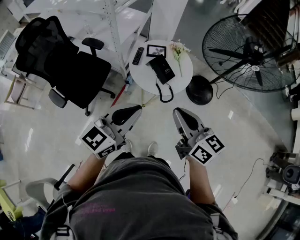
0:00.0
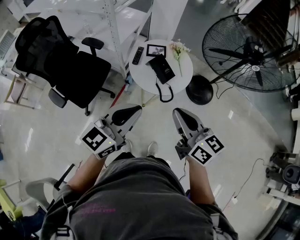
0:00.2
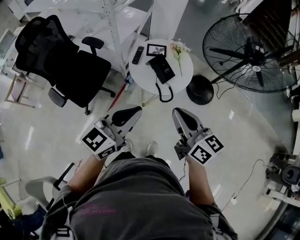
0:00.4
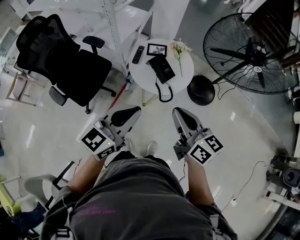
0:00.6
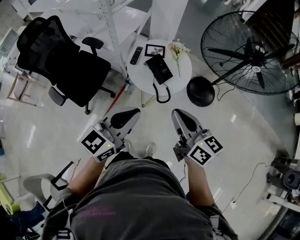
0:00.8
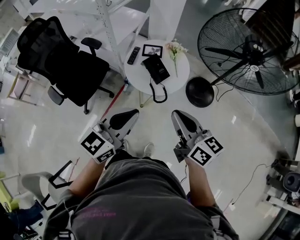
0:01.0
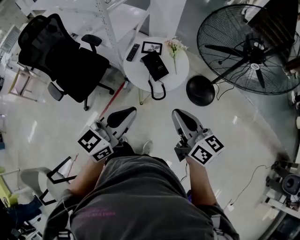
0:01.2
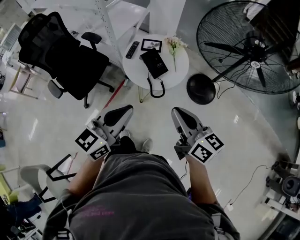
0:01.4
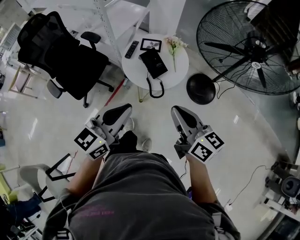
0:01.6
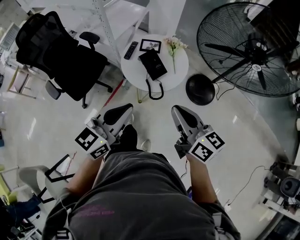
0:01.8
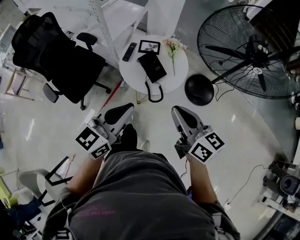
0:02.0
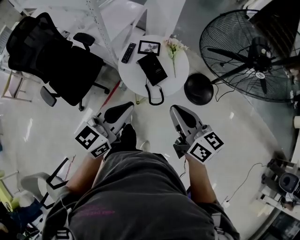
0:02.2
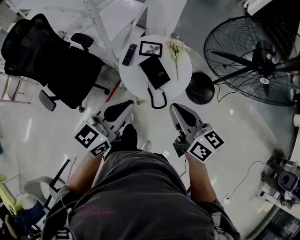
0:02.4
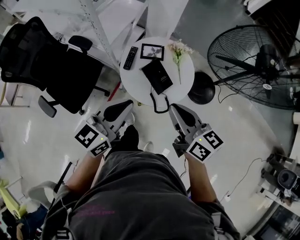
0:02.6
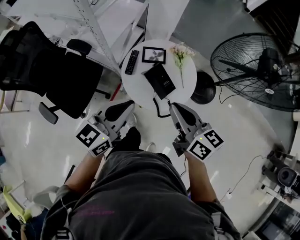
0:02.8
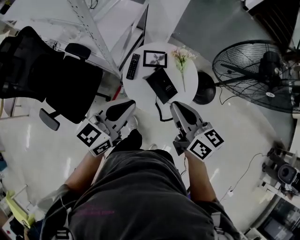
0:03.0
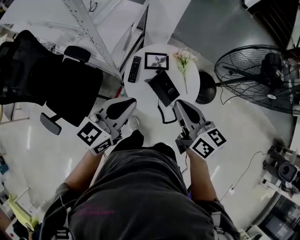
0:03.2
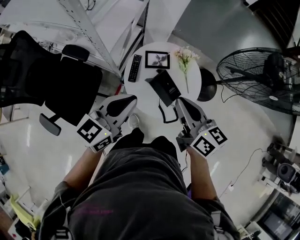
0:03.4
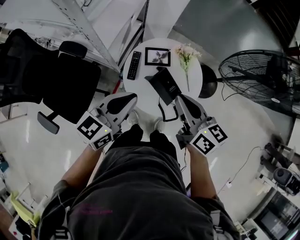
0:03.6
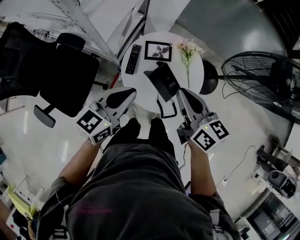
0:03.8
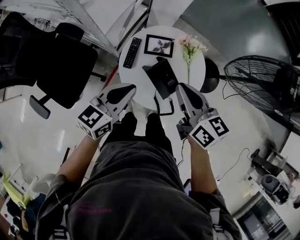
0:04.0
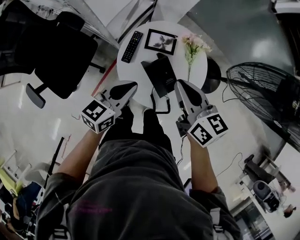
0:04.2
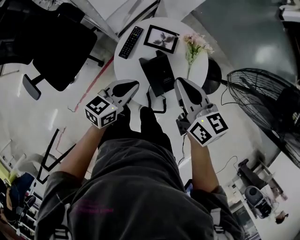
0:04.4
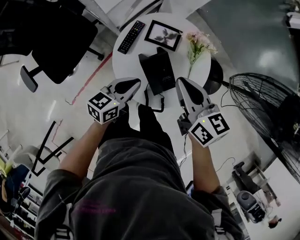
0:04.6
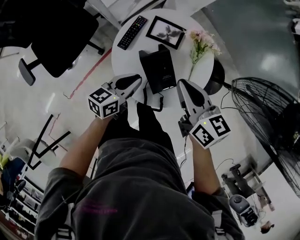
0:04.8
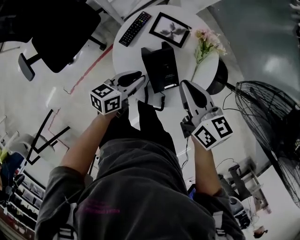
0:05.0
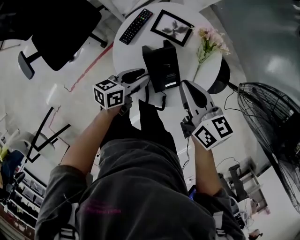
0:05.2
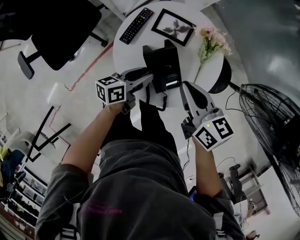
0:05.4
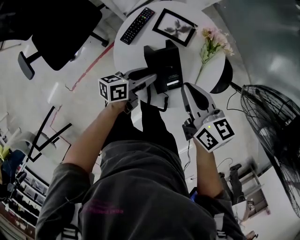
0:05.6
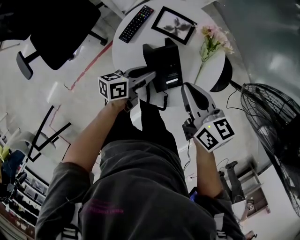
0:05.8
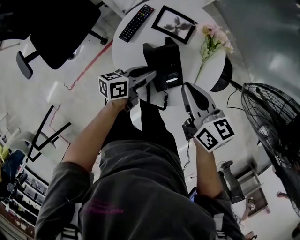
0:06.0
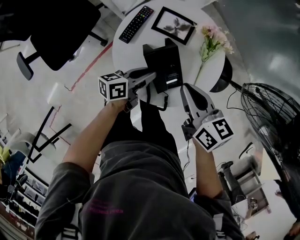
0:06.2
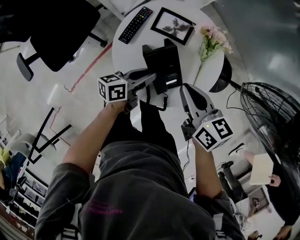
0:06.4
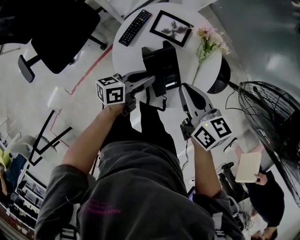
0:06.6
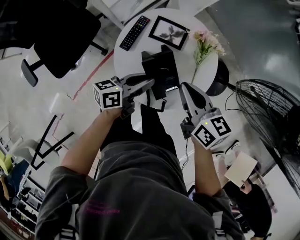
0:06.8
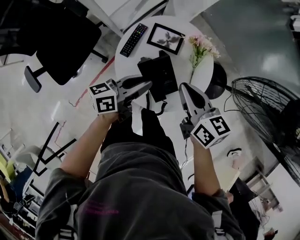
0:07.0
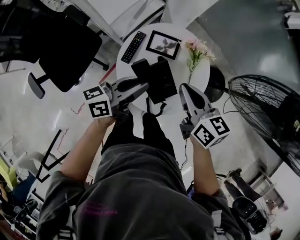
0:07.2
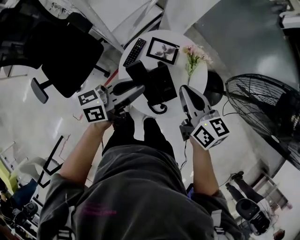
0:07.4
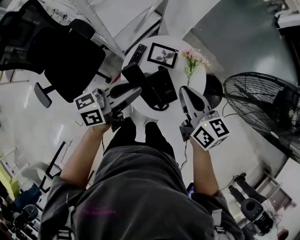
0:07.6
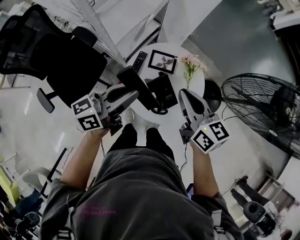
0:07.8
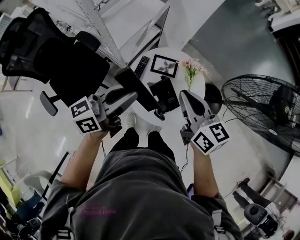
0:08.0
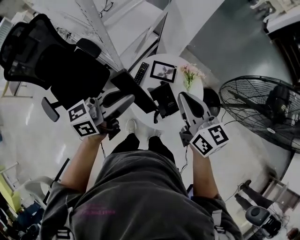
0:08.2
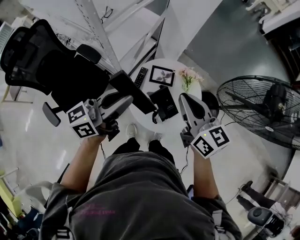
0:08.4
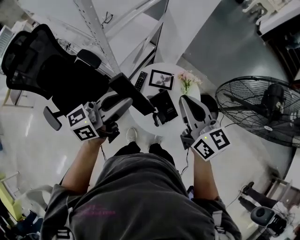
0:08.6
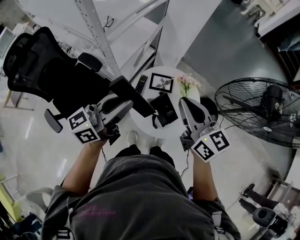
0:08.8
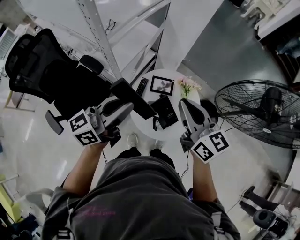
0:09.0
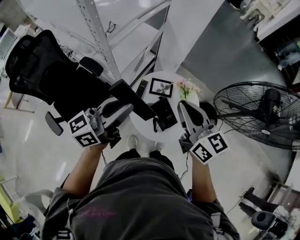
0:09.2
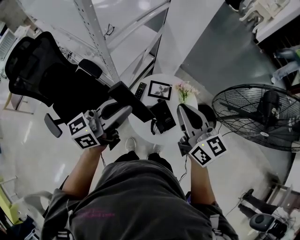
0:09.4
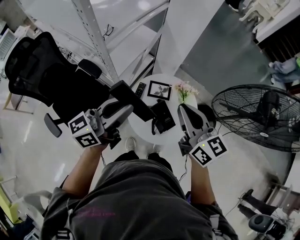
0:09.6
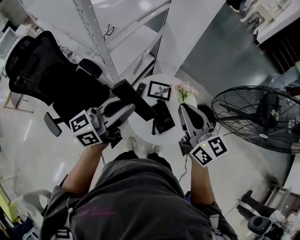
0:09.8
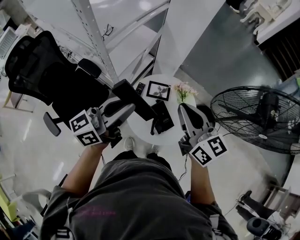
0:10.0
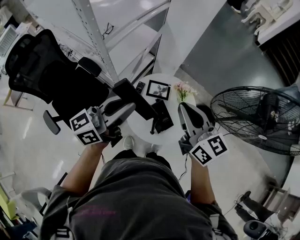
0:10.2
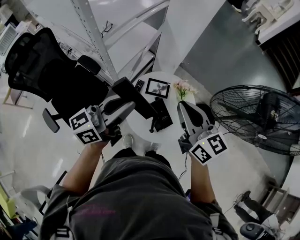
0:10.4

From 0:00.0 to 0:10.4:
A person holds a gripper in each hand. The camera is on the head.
From 0:00.0 to 0:01.4: Both grippers travel together to the right, approximately 10 cm.
From 0:01.4 to 0:03.0: The grippers both shift forward and to the left by about 30 cm.
From 0:03.0 to 0:04.4: The left gripper goes approximately 25 cm downward and forward, and rotates roughly 20 degrees, while the right gripper moves forward and downward, about 20 cm.
From 0:04.4 to 0:06.0: Both grippers move downward, approximately 15 cm. The left gripper turns by about 30 degrees.
From 0:06.0 to 0:07.4: The left gripper shifts approximately 25 cm upward, and turns by approximately 20 degrees. The right gripper moves upward, approximately 10 cm.
From 0:07.4 to 0:09.0: The grippers both shift upward by roughly 15 cm. The right gripper rotates approximately 20 degrees; the left gripper rotates roughly 20 degrees.
From 0:09.0 to 0:10.4: The grippers make only small movements.

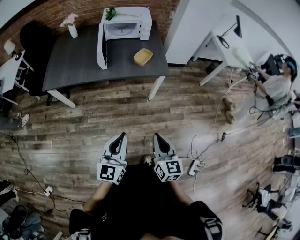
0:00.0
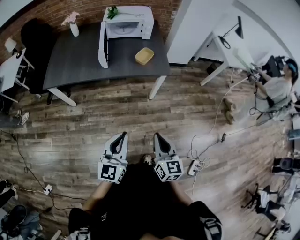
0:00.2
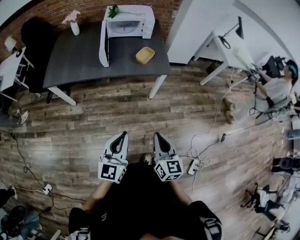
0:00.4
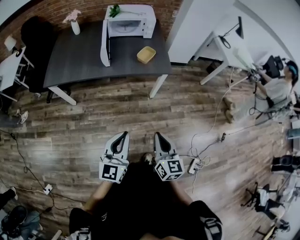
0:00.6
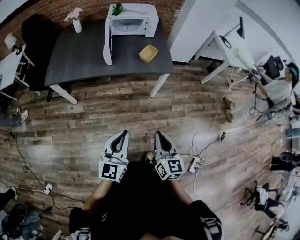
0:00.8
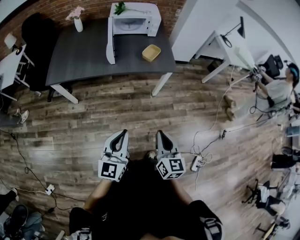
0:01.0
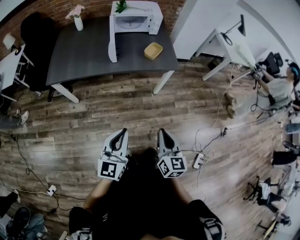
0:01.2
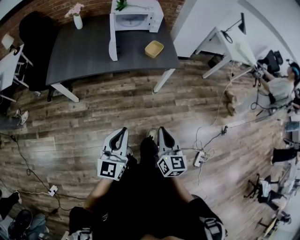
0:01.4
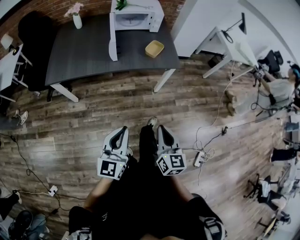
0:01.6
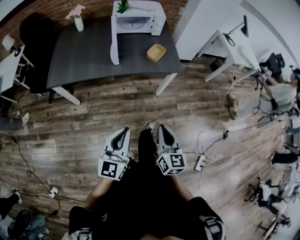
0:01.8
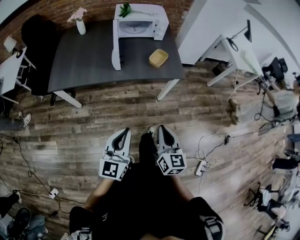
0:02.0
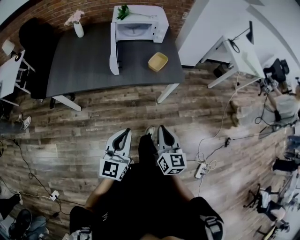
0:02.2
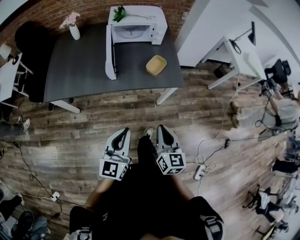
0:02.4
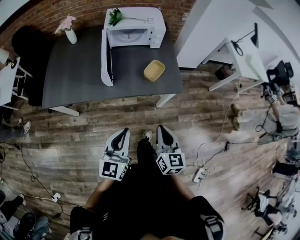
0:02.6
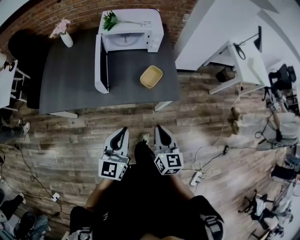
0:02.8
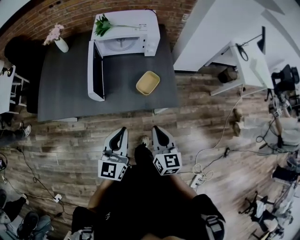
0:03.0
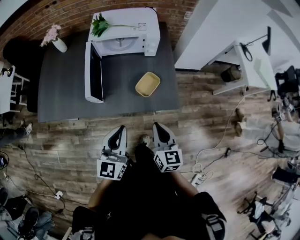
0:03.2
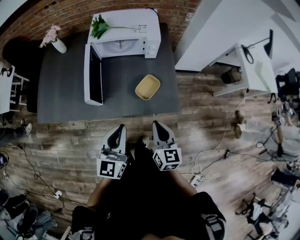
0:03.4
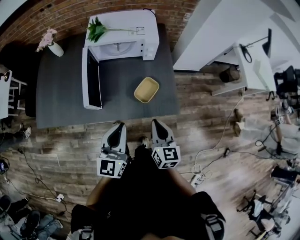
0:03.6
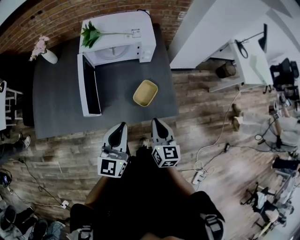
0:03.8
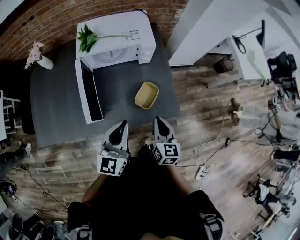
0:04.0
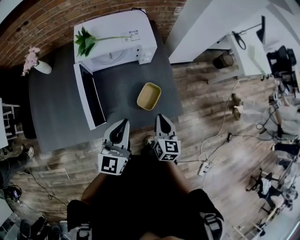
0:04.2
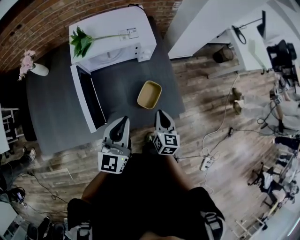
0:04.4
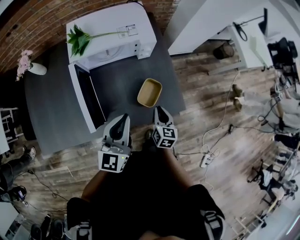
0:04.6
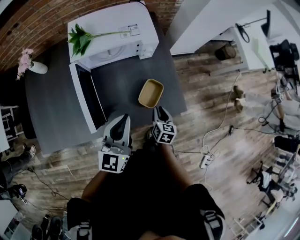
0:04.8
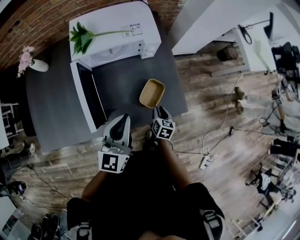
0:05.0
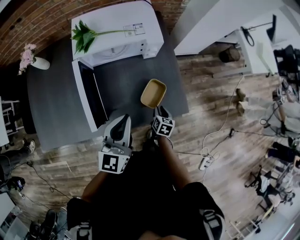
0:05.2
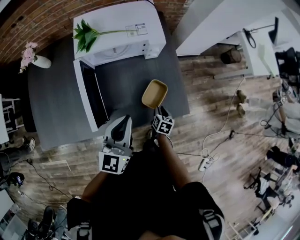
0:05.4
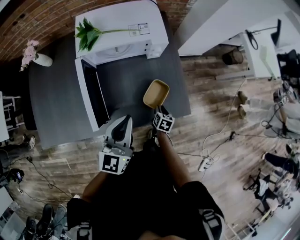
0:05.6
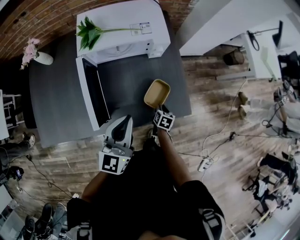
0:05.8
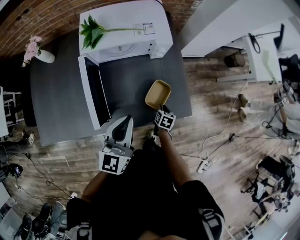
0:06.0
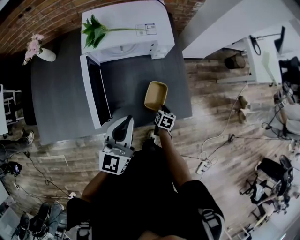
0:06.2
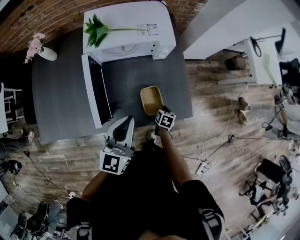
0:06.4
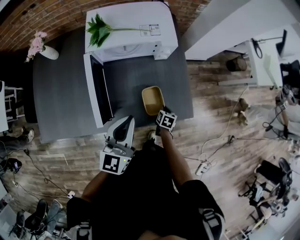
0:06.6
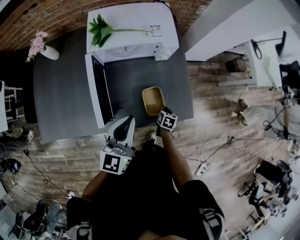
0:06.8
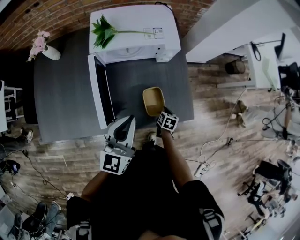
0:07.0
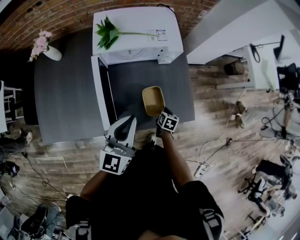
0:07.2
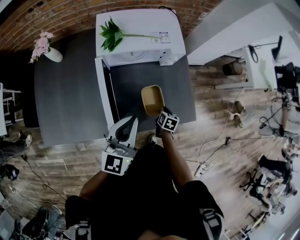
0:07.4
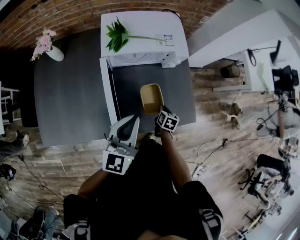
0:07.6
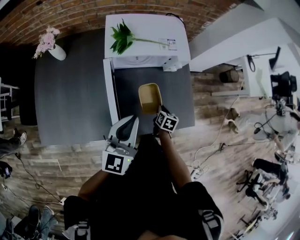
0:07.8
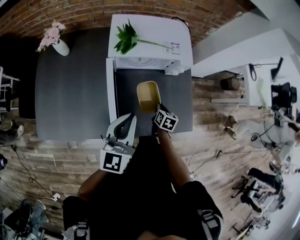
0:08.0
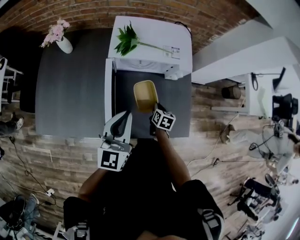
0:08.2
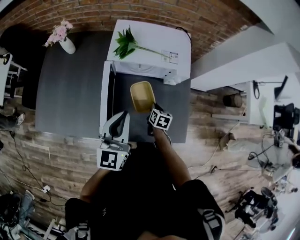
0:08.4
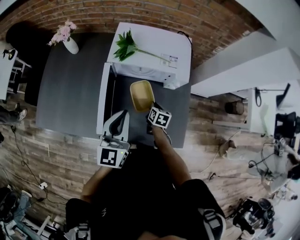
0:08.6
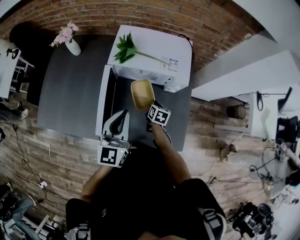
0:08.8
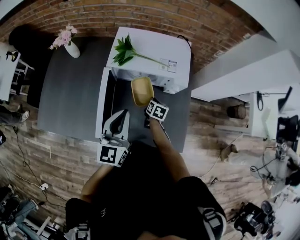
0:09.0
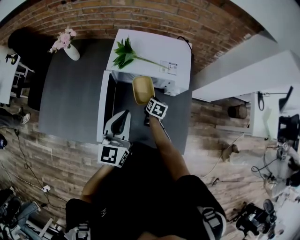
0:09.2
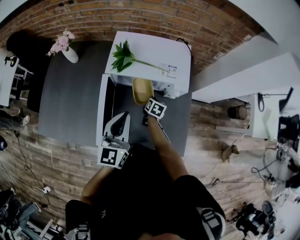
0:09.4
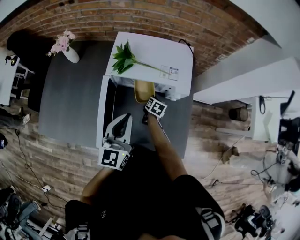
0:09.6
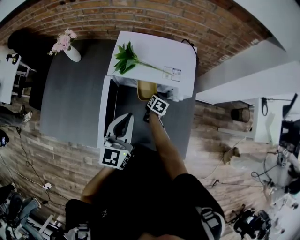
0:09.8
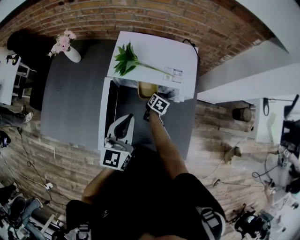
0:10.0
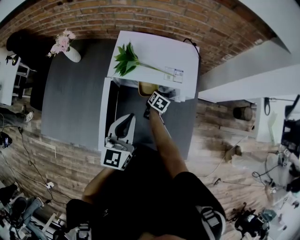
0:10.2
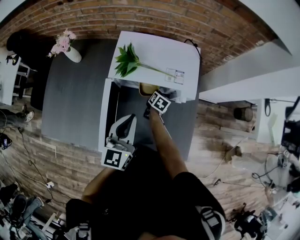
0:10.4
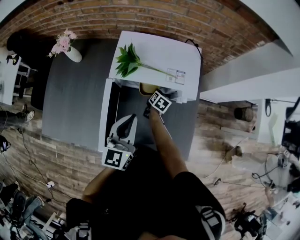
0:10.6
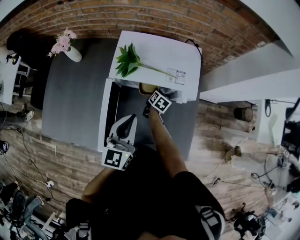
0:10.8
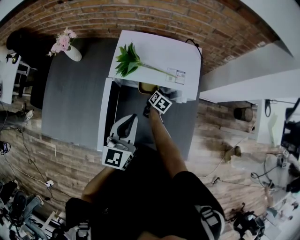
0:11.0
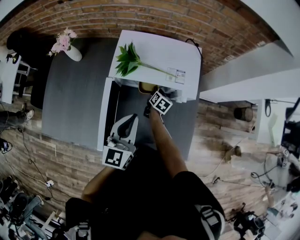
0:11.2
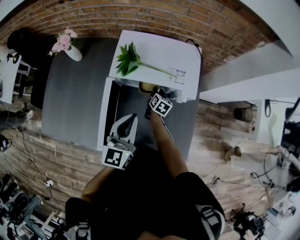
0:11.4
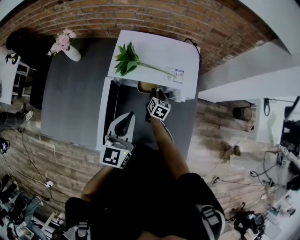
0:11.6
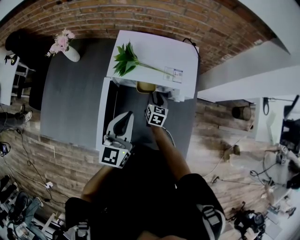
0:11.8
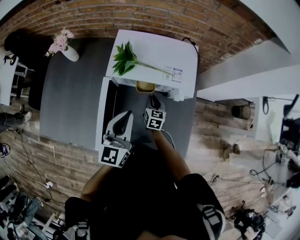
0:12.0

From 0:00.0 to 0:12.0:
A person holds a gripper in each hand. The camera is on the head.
From 0:00.0 to 0:01.6: The two grippers go roughly 10 cm to the left.
From 0:01.6 to 0:03.0: Both grippers move forward, about 35 cm.
From 0:03.0 to 0:04.4: The right gripper travels forward and downward by some 25 cm, and rotates some 20 degrees; the left gripper is displaced forward by approximately 20 cm.
From 0:04.4 to 0:06.0: The right gripper goes about 20 cm downward, turns by some 30 degrees, and opens up.
From 0:06.0 to 0:07.6: The right gripper moves to the left and upward, some 10 cm. Meanwhile the left gripper moves to the left, roughly 10 cm.
From 0:07.6 to 0:09.0: The right gripper heads forward, covering approximately 15 cm, while the left gripper travels forward by some 5 cm, and changes its angle by roughly 20 degrees.
From 0:09.0 to 0:10.4: The left gripper heads forward, covering some 5 cm. Meanwhile the right gripper shifts roughly 10 cm forward.
From 0:10.4 to 0:12.0: The right gripper is displaced upward and backward by some 10 cm, and rotates about 30 degrees.

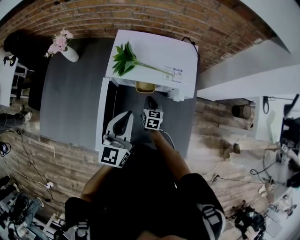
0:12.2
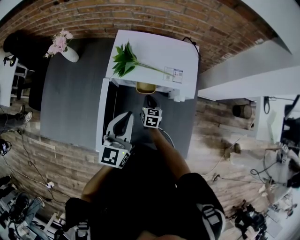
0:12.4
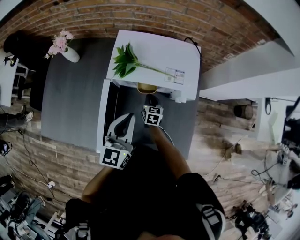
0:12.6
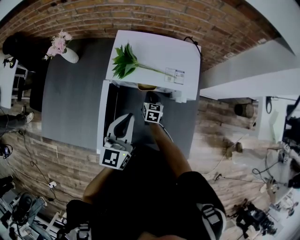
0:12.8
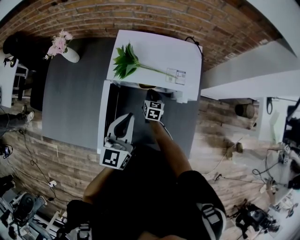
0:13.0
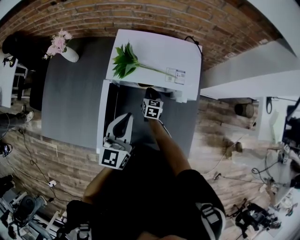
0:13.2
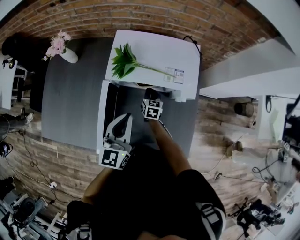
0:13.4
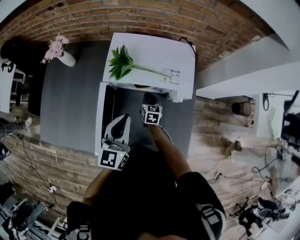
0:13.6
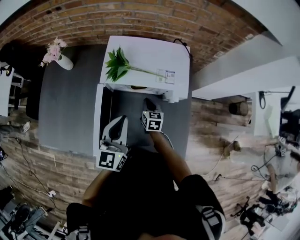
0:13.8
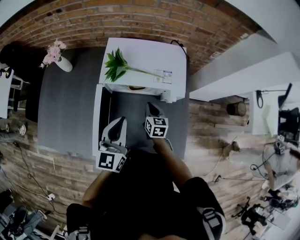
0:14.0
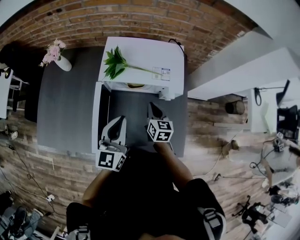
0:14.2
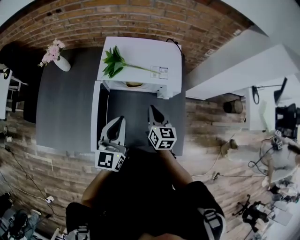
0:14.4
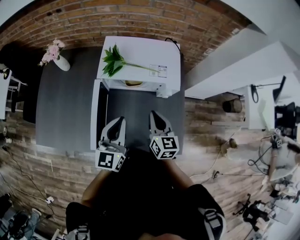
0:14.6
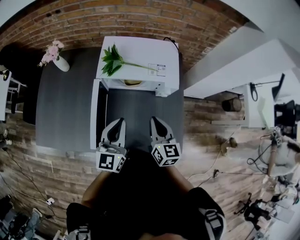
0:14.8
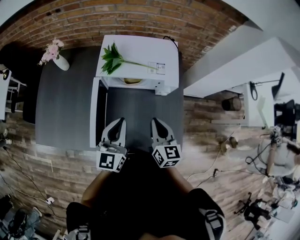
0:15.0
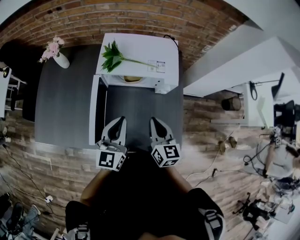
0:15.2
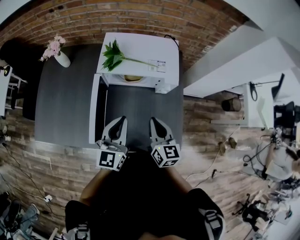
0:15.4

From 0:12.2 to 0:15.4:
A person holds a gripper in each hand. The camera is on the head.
From 0:13.8 to 0:15.4: The left gripper moves backward, some 10 cm. Meanwhile the right gripper goes about 25 cm upward and backward.
